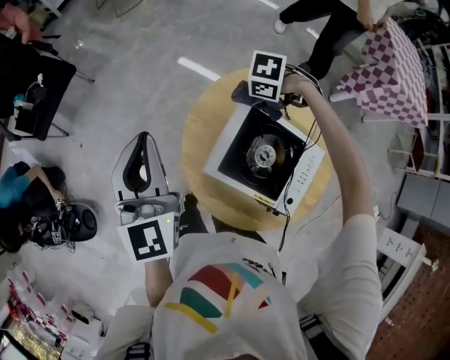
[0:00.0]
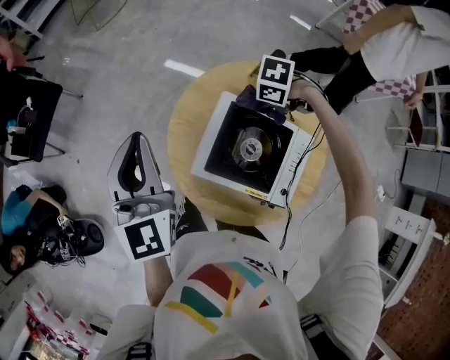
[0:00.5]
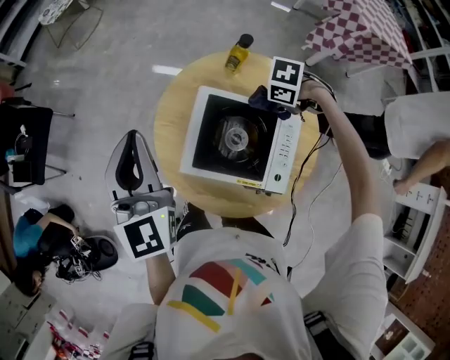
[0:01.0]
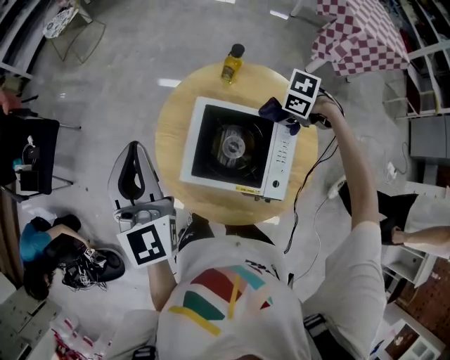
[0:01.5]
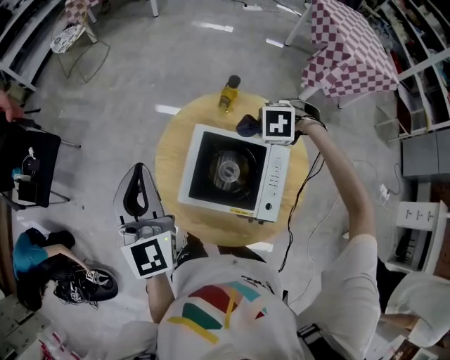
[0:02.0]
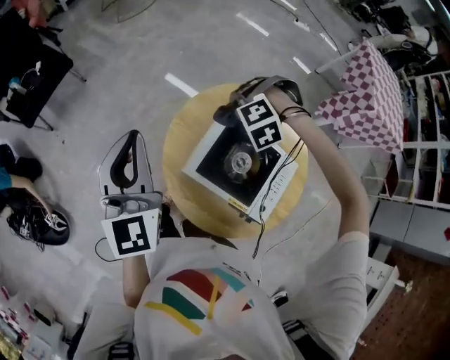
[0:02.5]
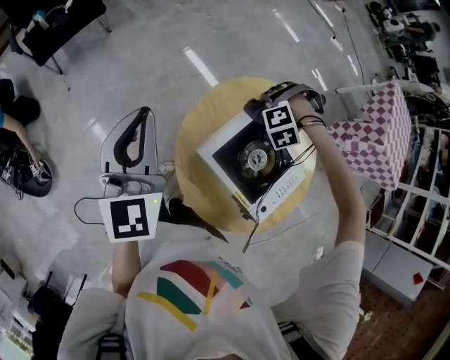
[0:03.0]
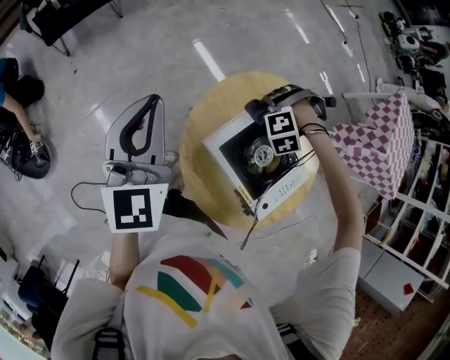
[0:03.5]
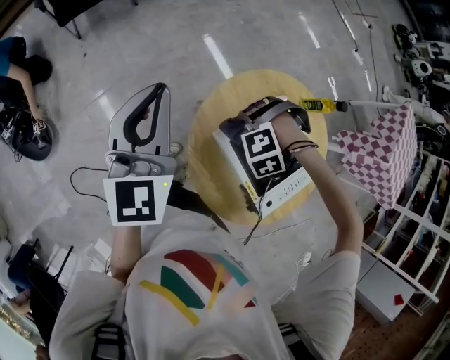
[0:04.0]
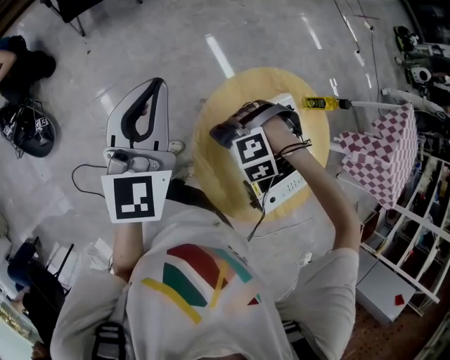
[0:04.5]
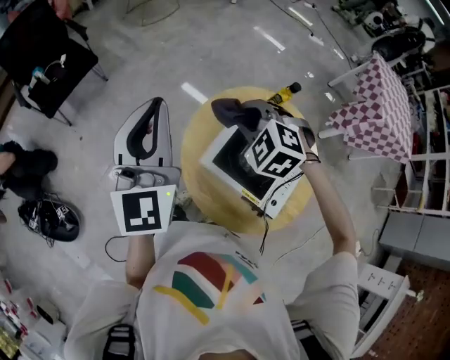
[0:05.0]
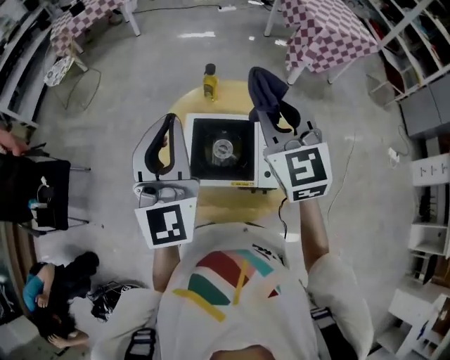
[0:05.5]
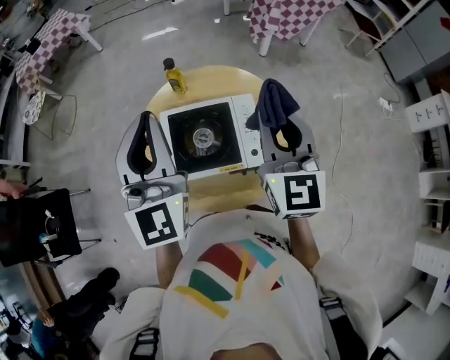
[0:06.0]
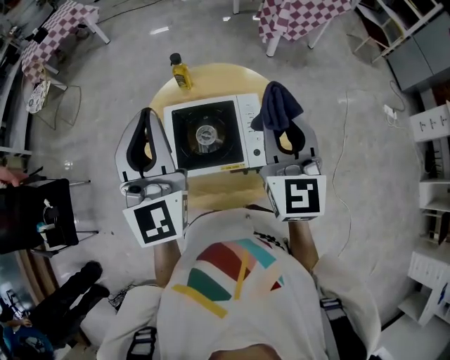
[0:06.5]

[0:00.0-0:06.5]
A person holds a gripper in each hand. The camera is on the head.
0:00.0 to 0:02.0: The right gripper ends up about 20 cm from where it was, while the left gripper ends up some 10 cm from where it was.
0:02.0 to 0:04.5: The left gripper ends up approximately 20 cm from where it was, and swivels roughly 30 degrees. The right gripper changes place by some 30 cm, and twists roughly 80 degrees counterclockwise, seen from behind.
0:04.5 to 0:06.5: The left gripper shifts by about 35 cm, and changes its angle by roughly 50 degrees; the right gripper heads upward, covering about 30 cm, and tips its fingers upward by about 80 degrees.

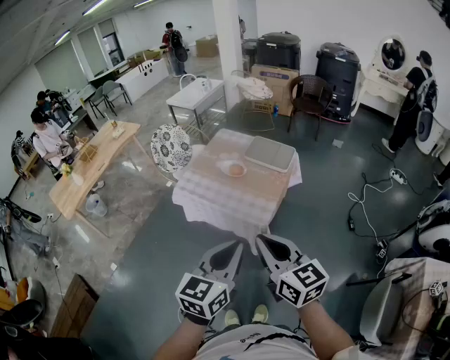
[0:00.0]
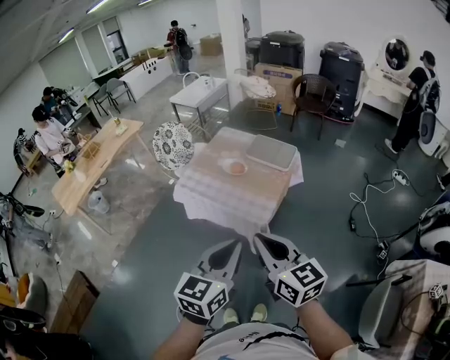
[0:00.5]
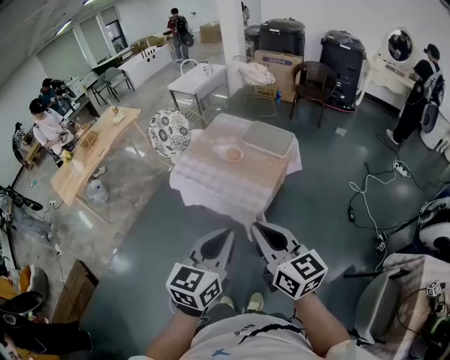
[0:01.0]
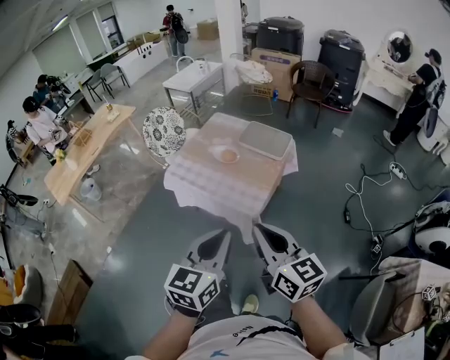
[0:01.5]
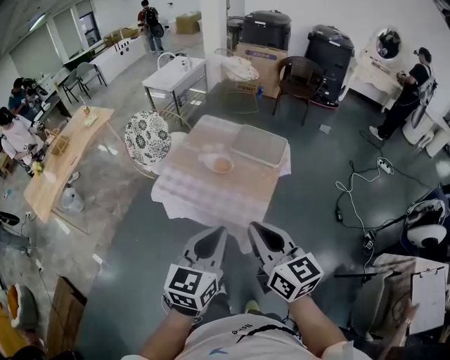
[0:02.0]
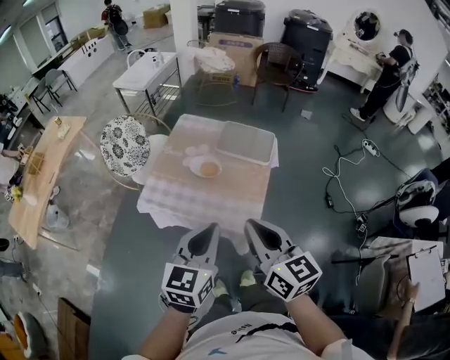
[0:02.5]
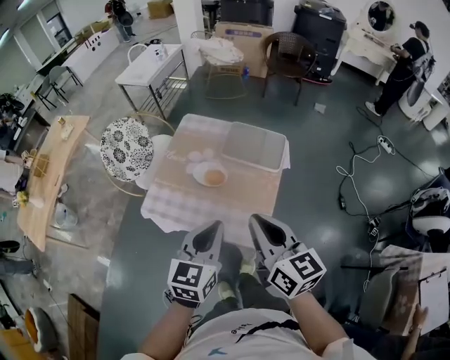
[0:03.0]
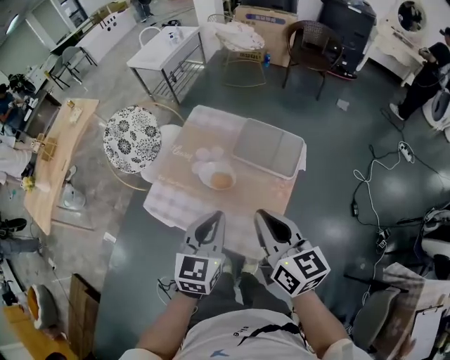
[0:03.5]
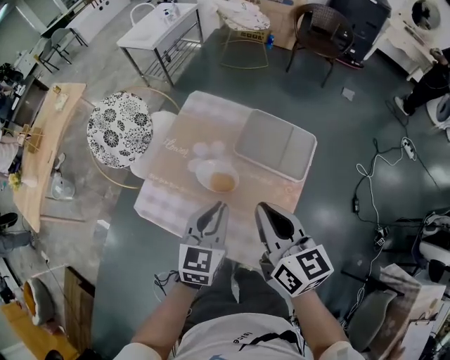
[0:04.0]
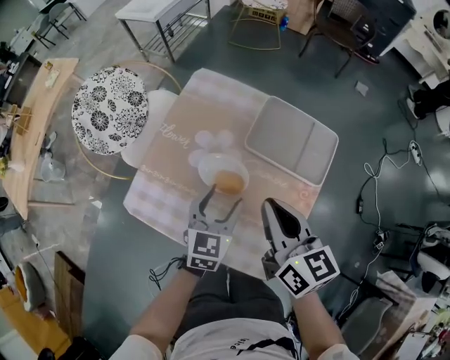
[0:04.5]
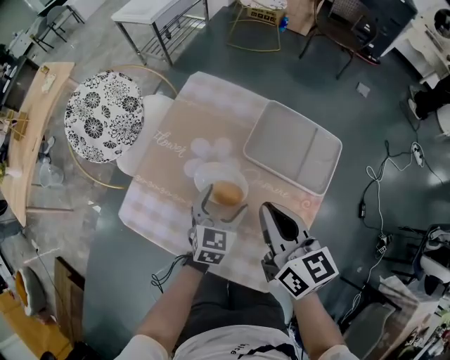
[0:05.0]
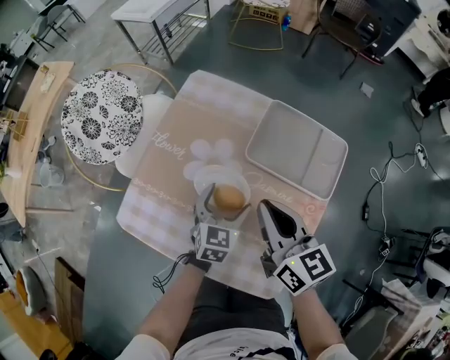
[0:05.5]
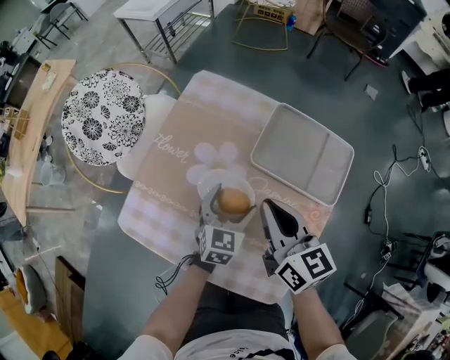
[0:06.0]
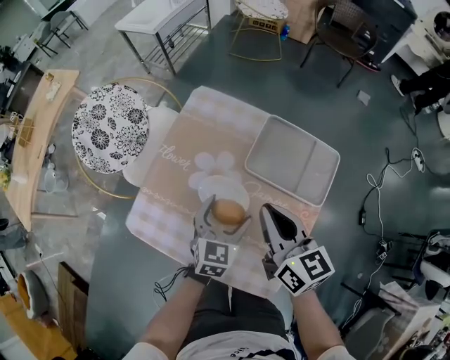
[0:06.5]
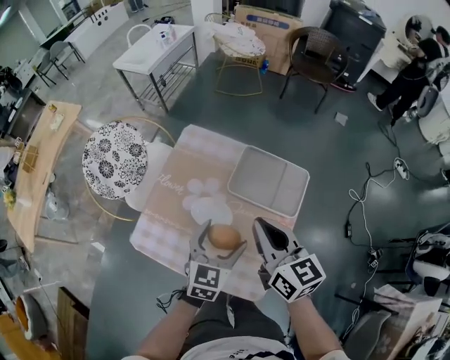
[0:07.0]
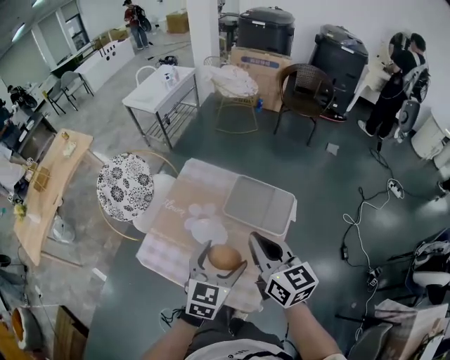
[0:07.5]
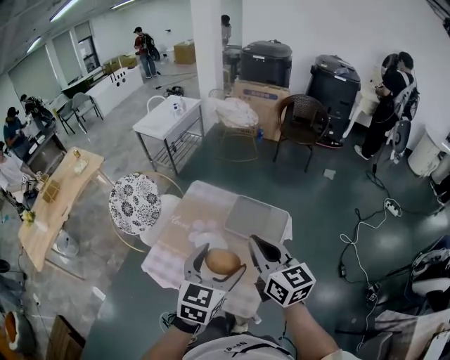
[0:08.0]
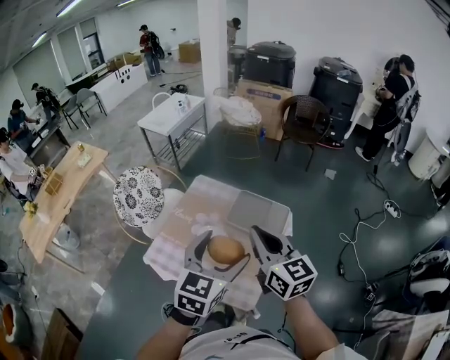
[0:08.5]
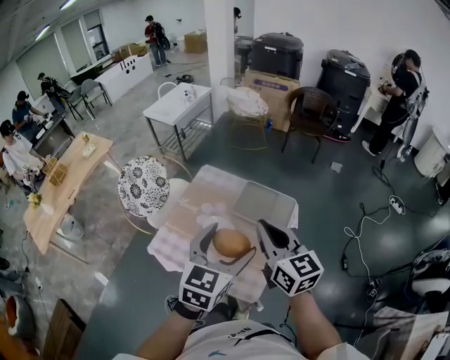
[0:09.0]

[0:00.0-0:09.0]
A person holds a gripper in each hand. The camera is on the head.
0:00.0 to 0:02.0: Both grippers move forward, approximately 15 cm.
0:02.0 to 0:04.5: The two grippers go some 50 cm forward and downward. The left gripper opens.
0:04.5 to 0:07.0: The two grippers go approximately 10 cm upward. The left gripper opens.
0:07.0 to 0:09.0: Both grippers travel together upward and backward, approximately 20 cm.

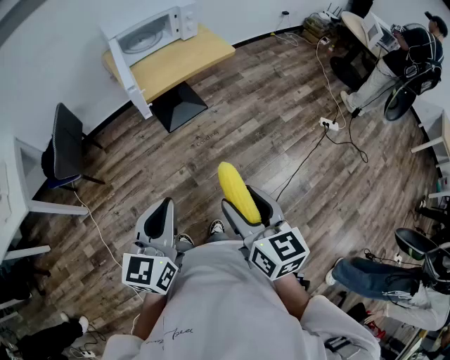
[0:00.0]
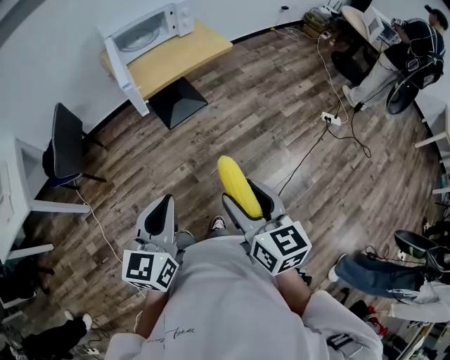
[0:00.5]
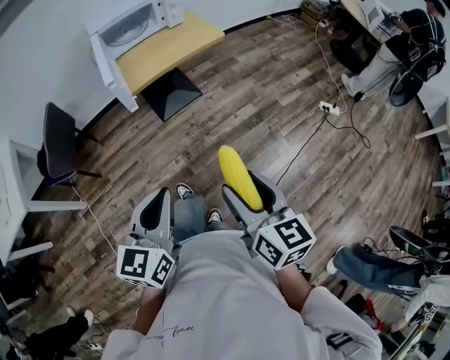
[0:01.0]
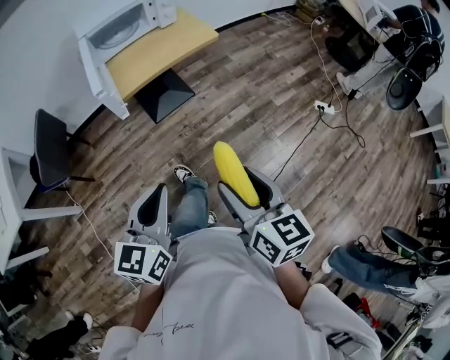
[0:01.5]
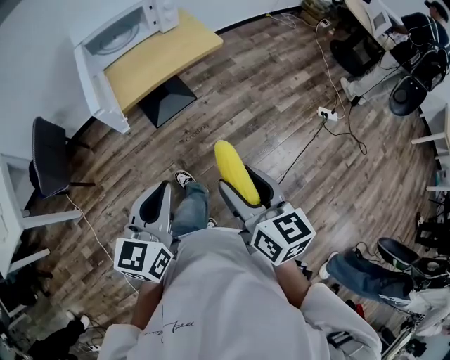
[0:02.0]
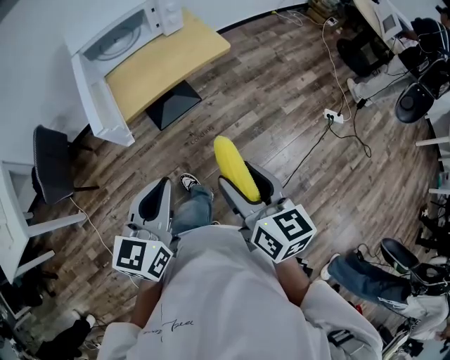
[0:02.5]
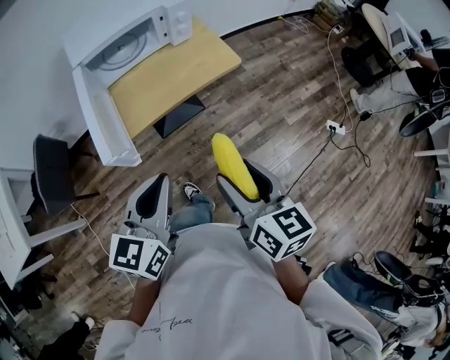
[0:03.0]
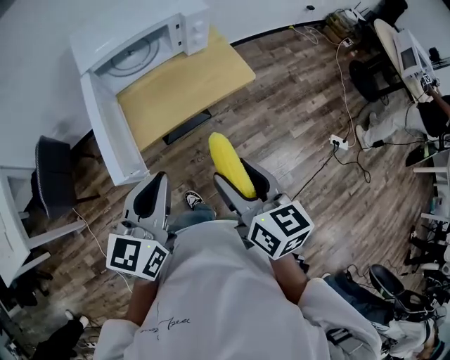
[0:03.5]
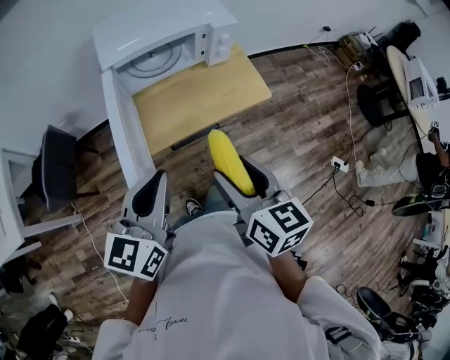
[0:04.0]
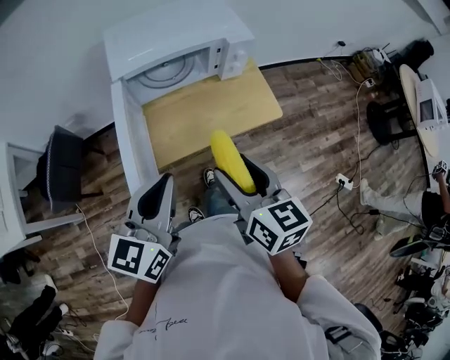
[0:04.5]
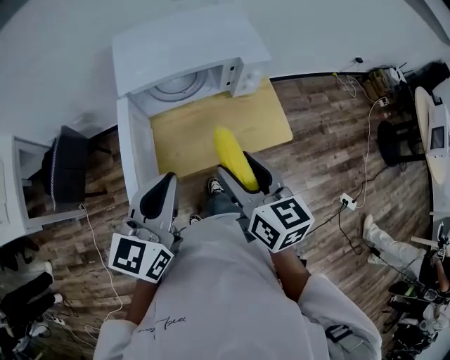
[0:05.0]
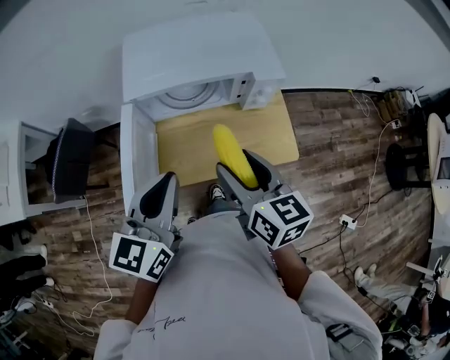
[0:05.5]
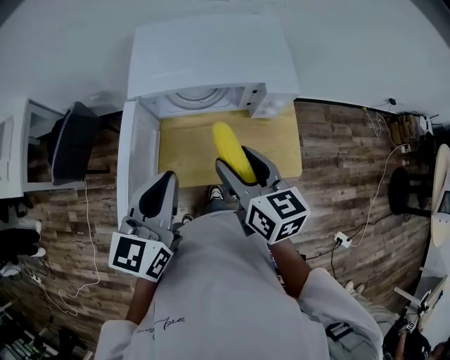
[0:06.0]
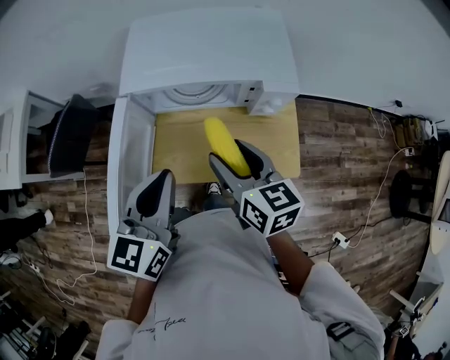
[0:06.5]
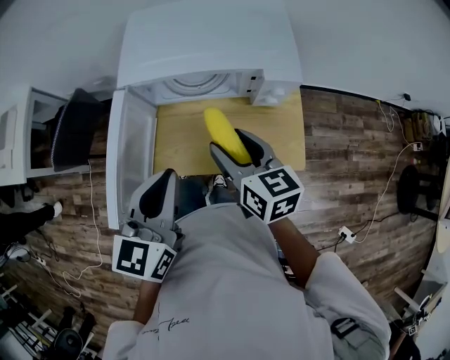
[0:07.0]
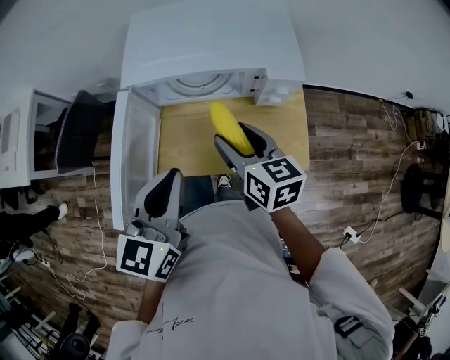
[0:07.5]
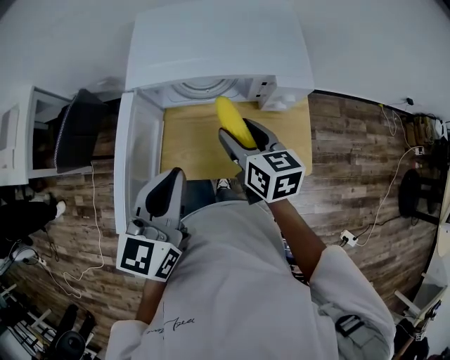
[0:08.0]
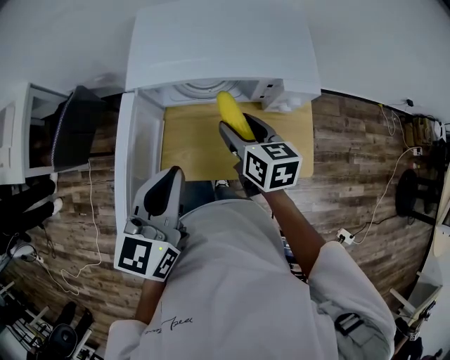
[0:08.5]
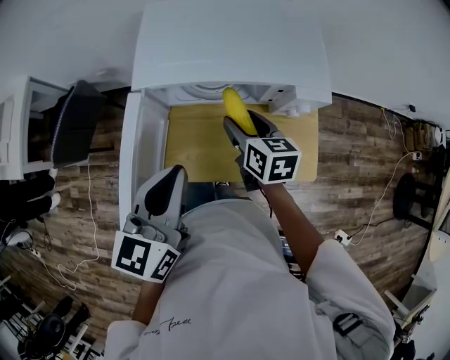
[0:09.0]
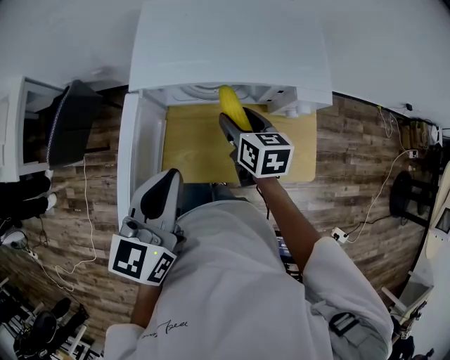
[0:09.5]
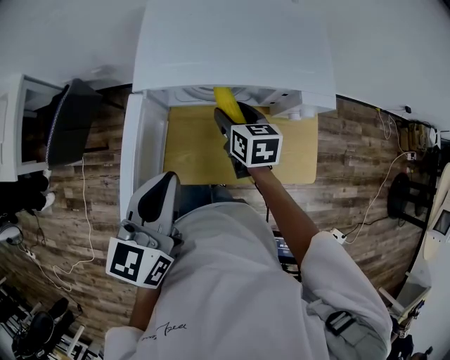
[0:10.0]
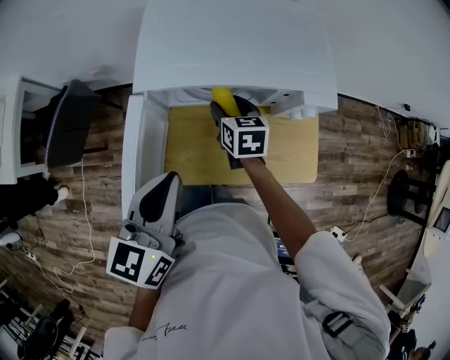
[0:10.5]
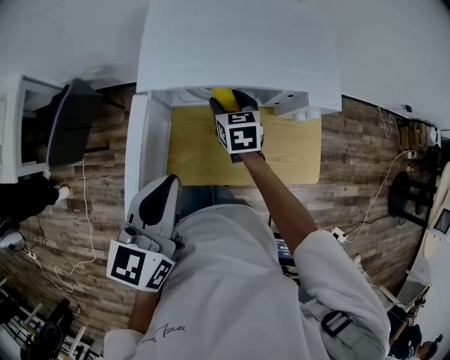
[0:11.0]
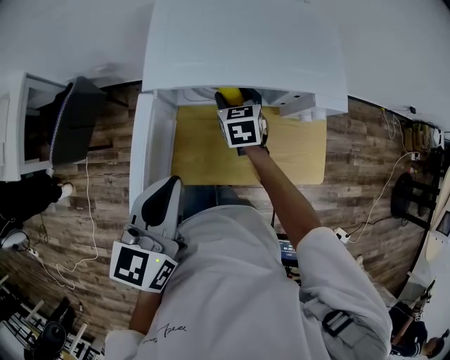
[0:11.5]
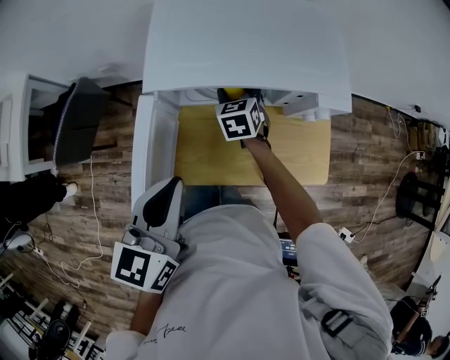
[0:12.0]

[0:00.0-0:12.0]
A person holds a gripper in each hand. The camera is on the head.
0:00.0 to 0:02.0: Both grippers move forward and to the right, some 15 cm.
0:02.0 to 0:04.0: Both grippers move forward, approximately 30 cm.
0:04.0 to 0:06.0: The grippers both shift forward by roughly 25 cm. The left gripper changes its angle by about 20 degrees; the right gripper turns by roughly 20 degrees.
0:06.0 to 0:08.0: The right gripper shifts roughly 10 cm downward and forward.
0:08.0 to 0:10.0: The right gripper shifts some 15 cm forward and downward. Meanwhile the left gripper travels to the left by roughly 5 cm.
0:10.0 to 0:12.0: The right gripper moves forward, approximately 10 cm, and turns by some 30 degrees.
